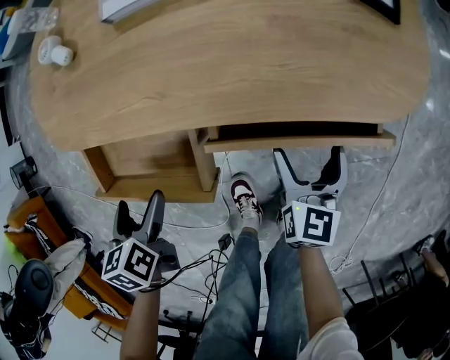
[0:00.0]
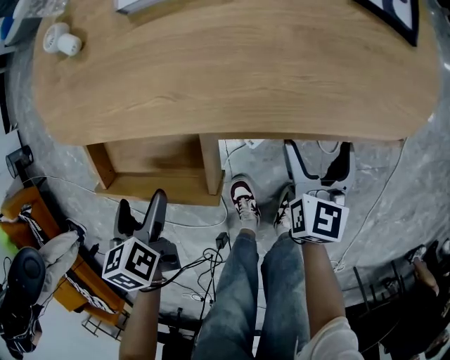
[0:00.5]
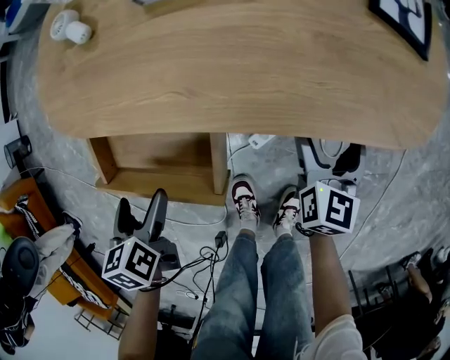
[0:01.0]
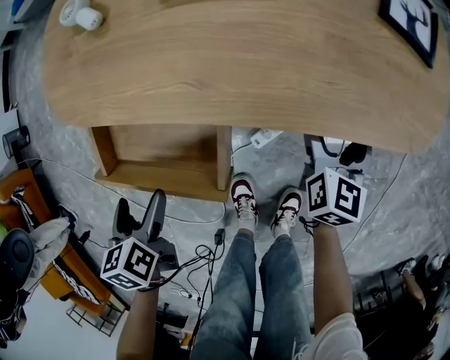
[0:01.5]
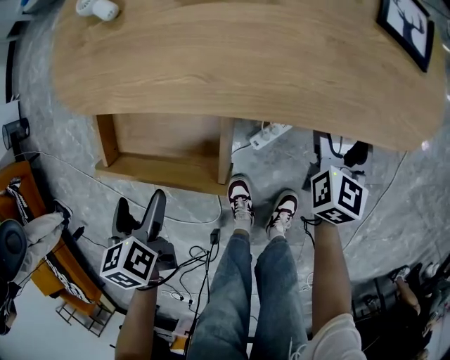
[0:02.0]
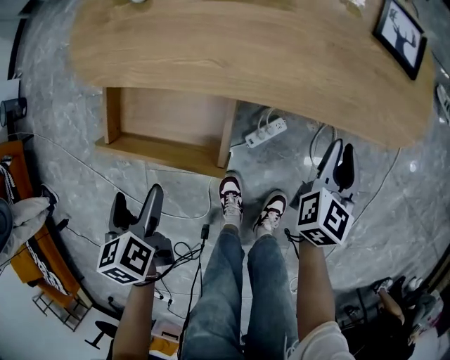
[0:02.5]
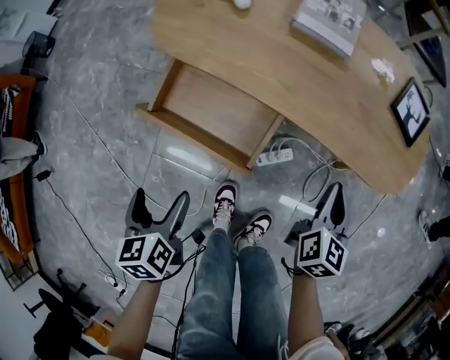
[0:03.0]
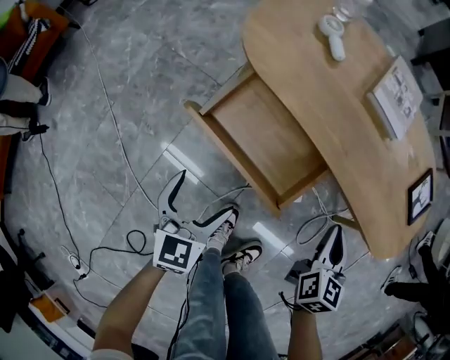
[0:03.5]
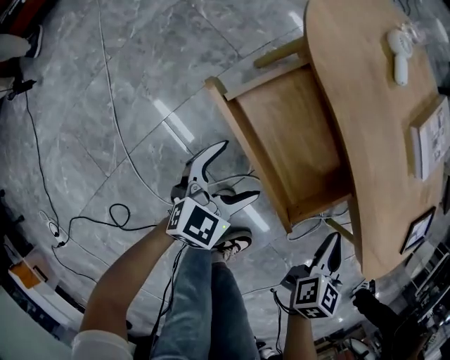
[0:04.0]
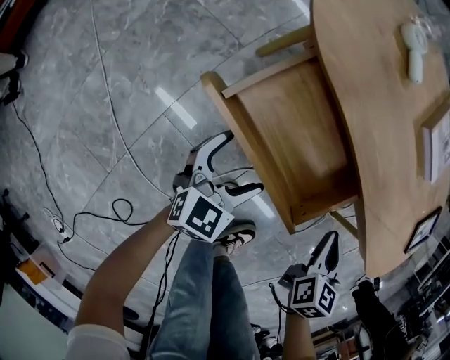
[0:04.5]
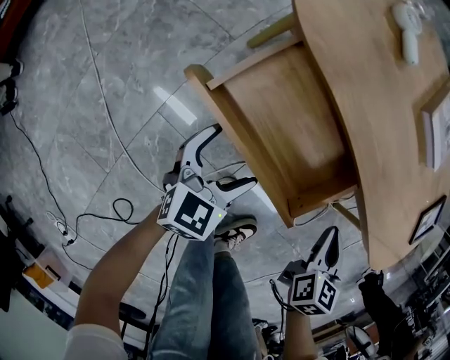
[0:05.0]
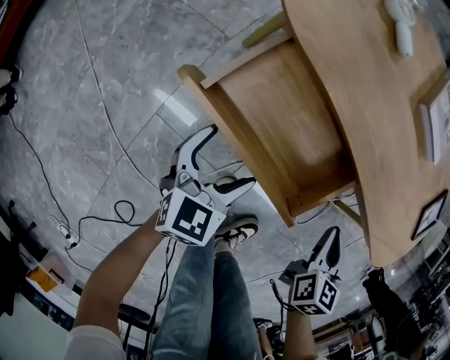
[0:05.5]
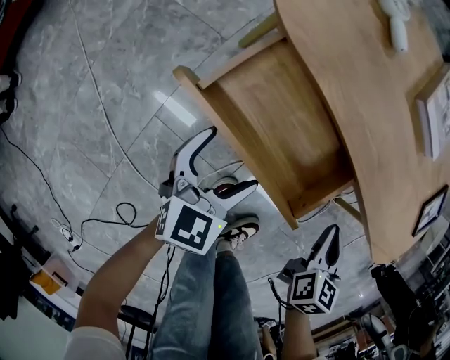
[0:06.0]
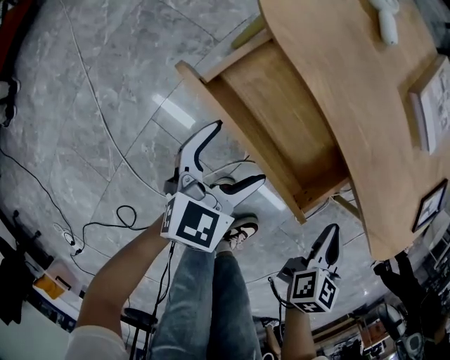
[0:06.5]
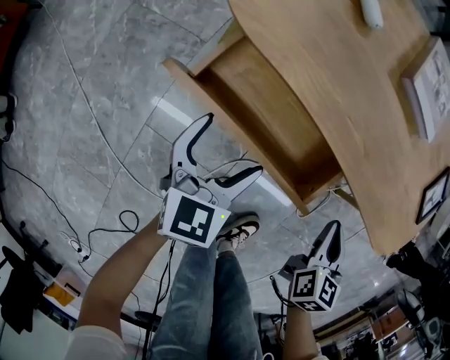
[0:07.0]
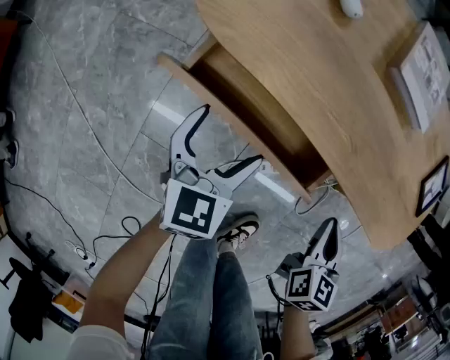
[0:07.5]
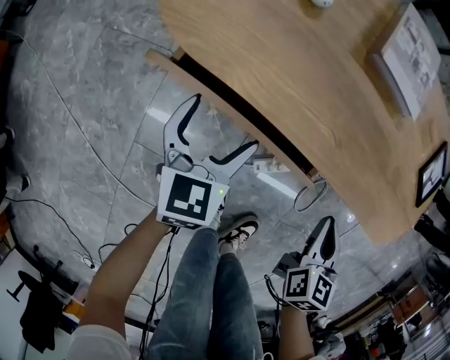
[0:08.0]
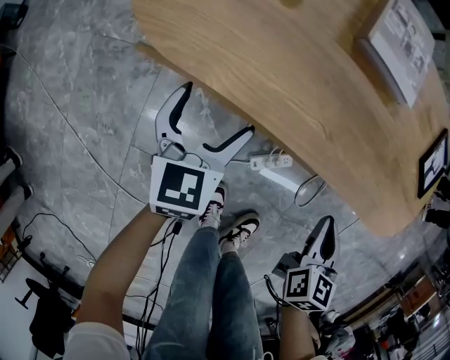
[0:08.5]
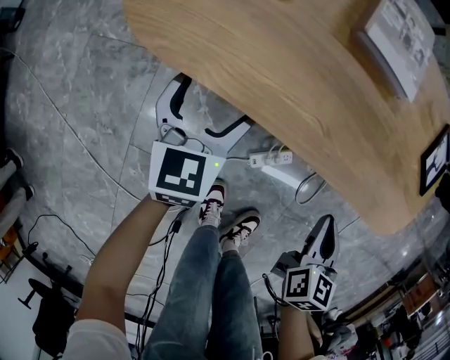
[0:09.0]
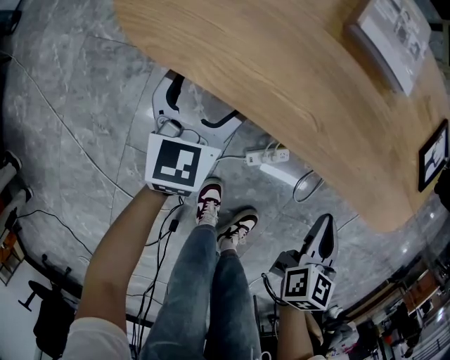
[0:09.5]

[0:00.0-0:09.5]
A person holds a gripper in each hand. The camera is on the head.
0:00.0 to 0:02.0: The right gripper travels forward by roughly 5 cm. Meanwhile the left gripper moves approximately 5 cm.
0:02.0 to 0:04.0: The right gripper is displaced to the left by approximately 20 cm, changes its angle by roughly 40 degrees, and closes, while the left gripper goes some 5 cm downward, and rotates approximately 30 degrees.
0:04.0 to 0:05.5: There are only small adjustments of the grippers.
0:05.5 to 0:07.5: The left gripper heads forward, covering about 10 cm.
0:07.5 to 0:09.5: The left gripper is displaced forward by about 10 cm.

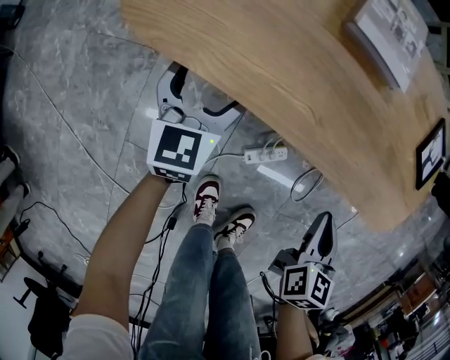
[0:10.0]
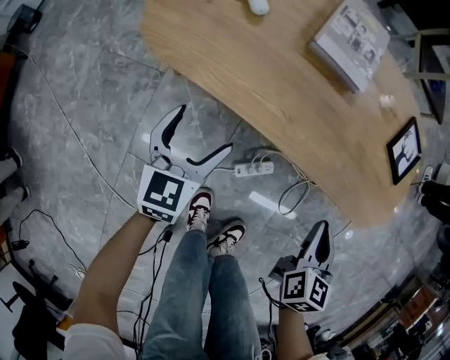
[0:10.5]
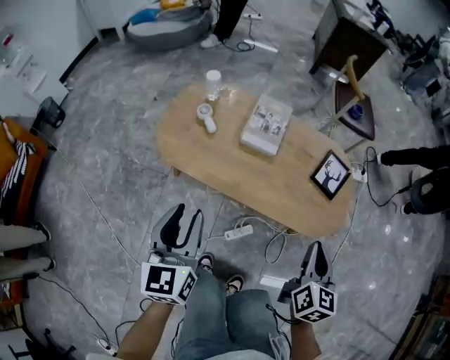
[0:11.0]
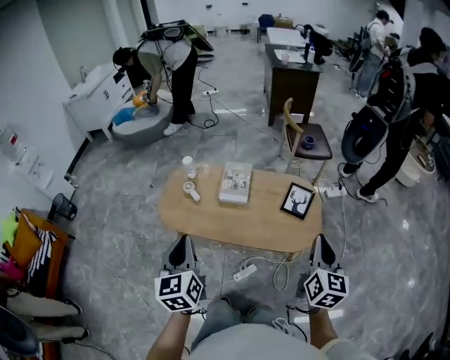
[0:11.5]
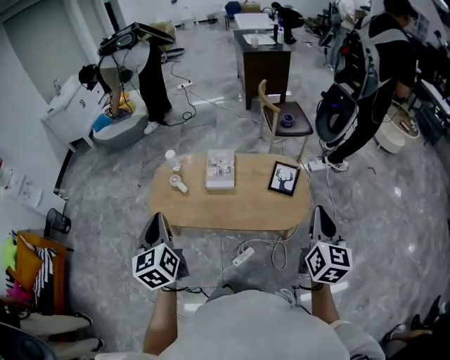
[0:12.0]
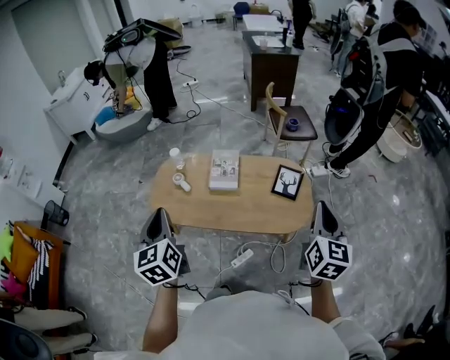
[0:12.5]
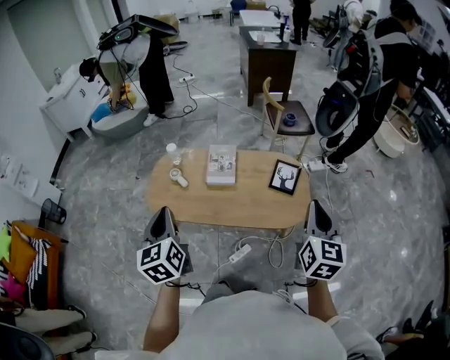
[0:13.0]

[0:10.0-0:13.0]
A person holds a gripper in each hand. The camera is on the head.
0:10.0 to 0:11.5: Both grippers move upward, roughly 50 cm. The left gripper closes up. Meanwhile the right gripper angles its fingers upward, by some 30 degrees.
0:11.5 to 0:13.0: The left gripper moves some 5 cm.

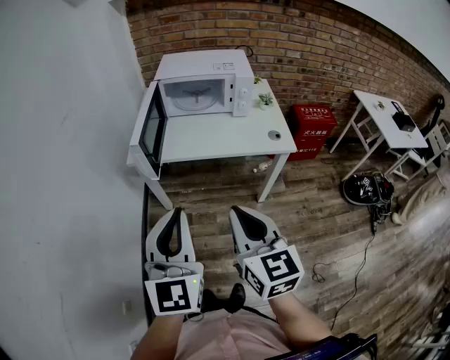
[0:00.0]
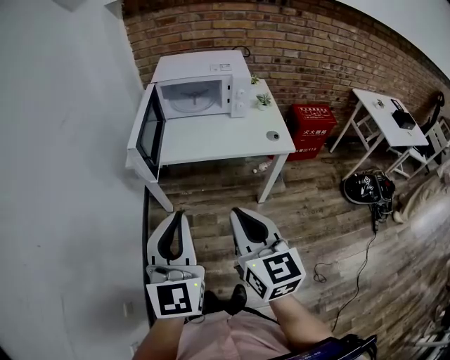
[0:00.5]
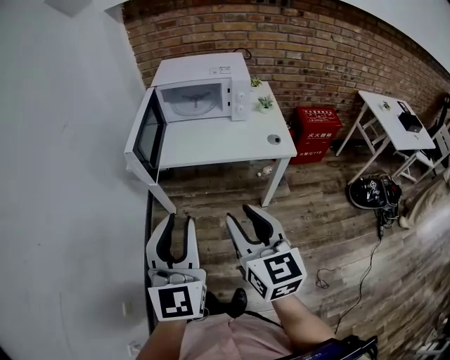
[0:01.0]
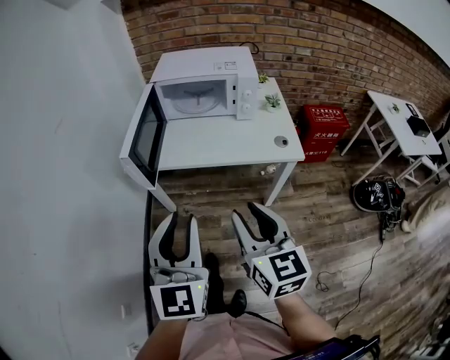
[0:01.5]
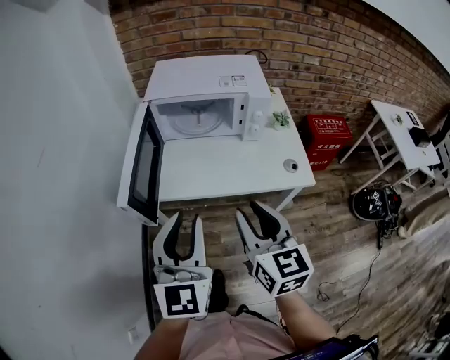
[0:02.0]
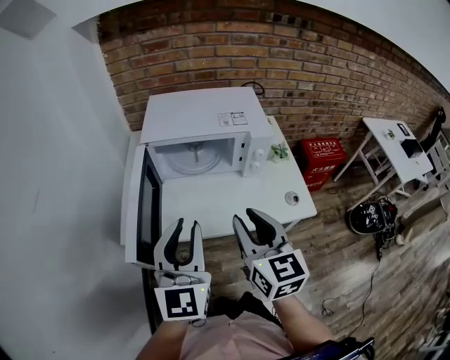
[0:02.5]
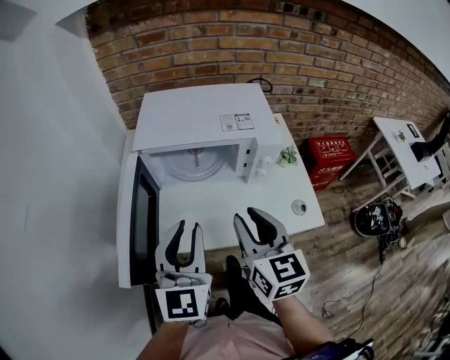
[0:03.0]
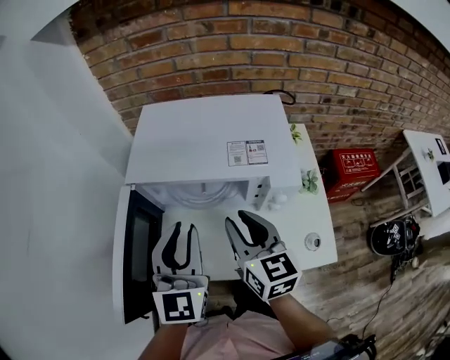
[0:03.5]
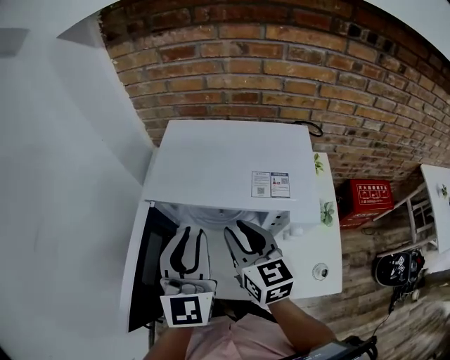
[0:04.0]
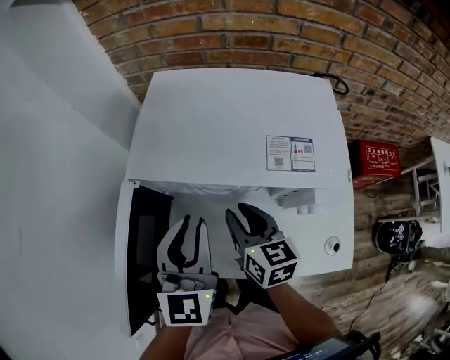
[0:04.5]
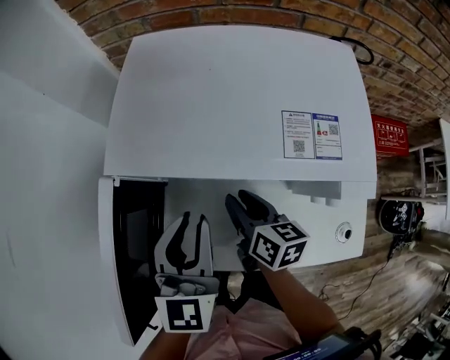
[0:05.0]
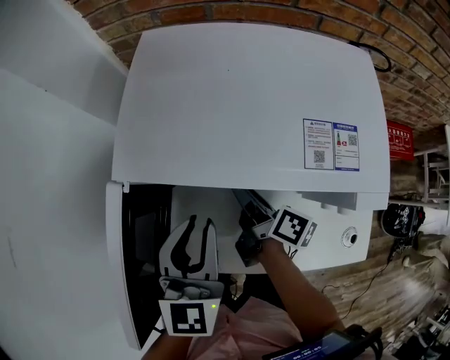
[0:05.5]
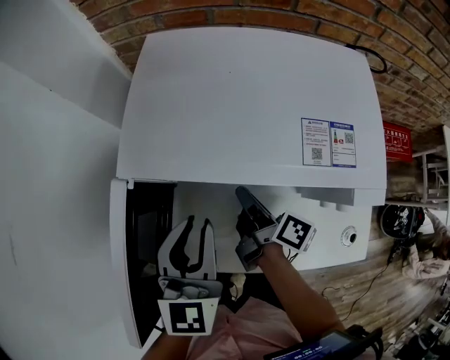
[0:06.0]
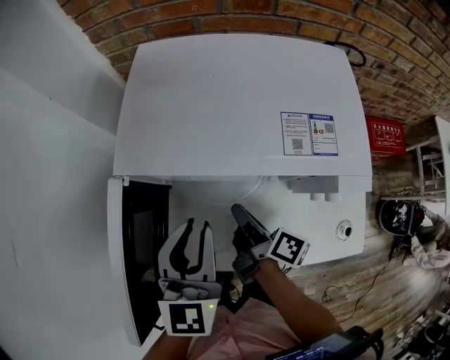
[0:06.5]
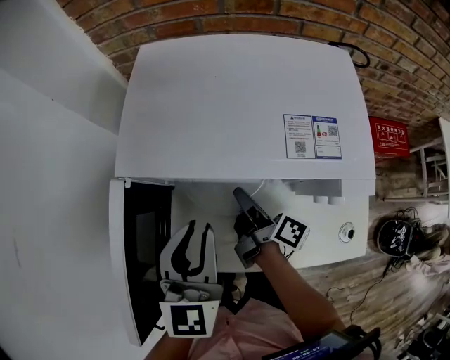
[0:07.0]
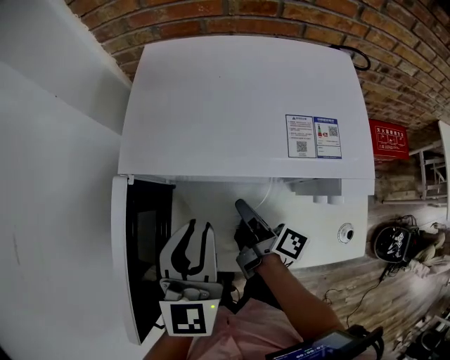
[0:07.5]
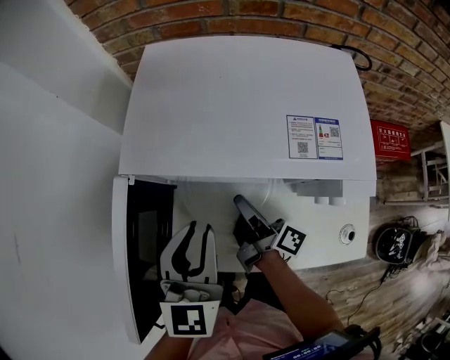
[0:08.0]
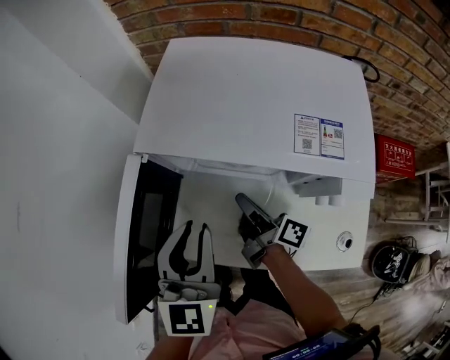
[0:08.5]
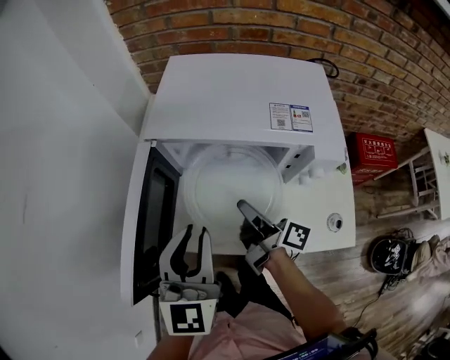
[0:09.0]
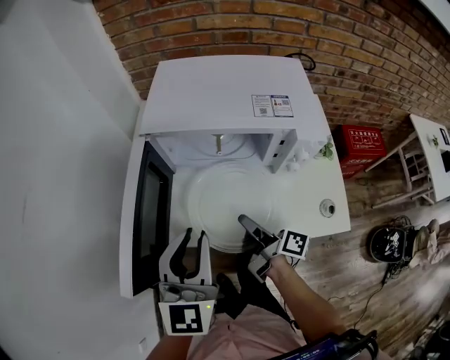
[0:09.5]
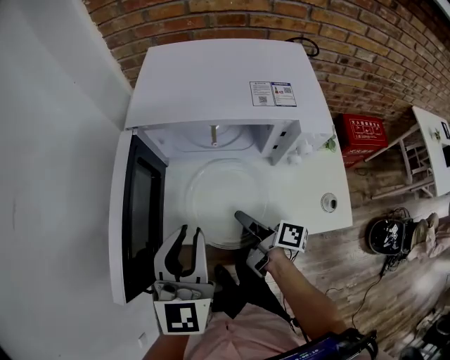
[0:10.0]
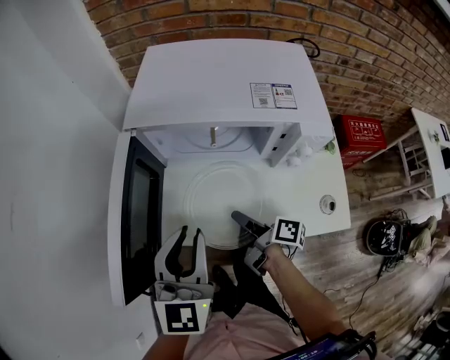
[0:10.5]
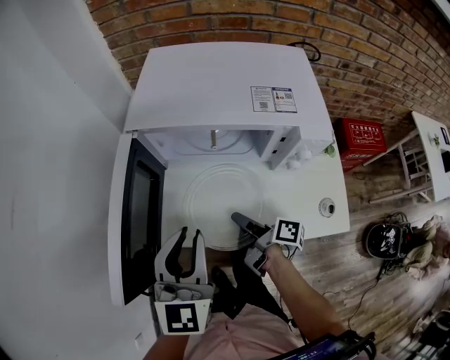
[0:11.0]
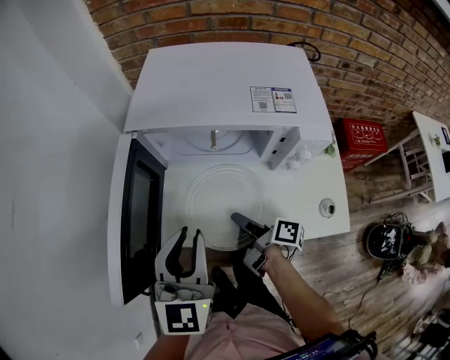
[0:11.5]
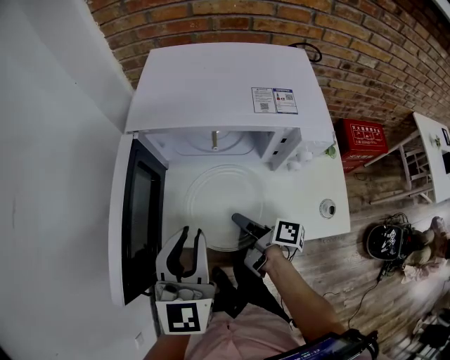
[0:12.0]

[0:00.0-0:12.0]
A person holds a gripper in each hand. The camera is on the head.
0:00.0 to 0:02.0: Both grippers travel together forward, about 20 cm. The right gripper opens up, while the left gripper opens.
0:02.0 to 0:04.0: The grippers both shift forward by some 35 cm.
0:04.0 to 0:06.0: The right gripper shifts roughly 20 cm downward, rolls clockwise, seen from behind, by roughly 70 degrees, and closes its fingers, while the left gripper is displaced downward by some 10 cm.
0:06.0 to 0:08.0: The grippers move only a little.
0:08.0 to 0:10.0: The two grippers go roughly 15 cm backward.
0:10.0 to 0:12.0: There are only small adjustments of the grippers.

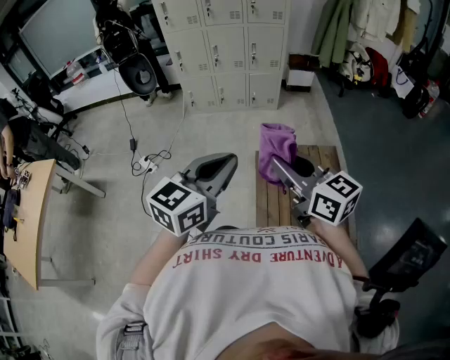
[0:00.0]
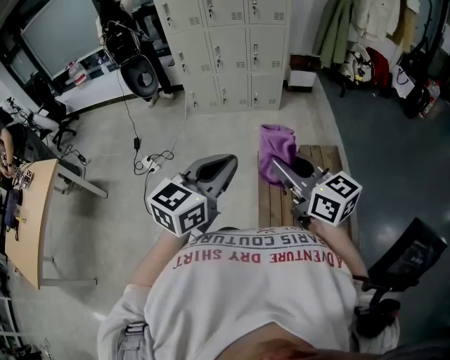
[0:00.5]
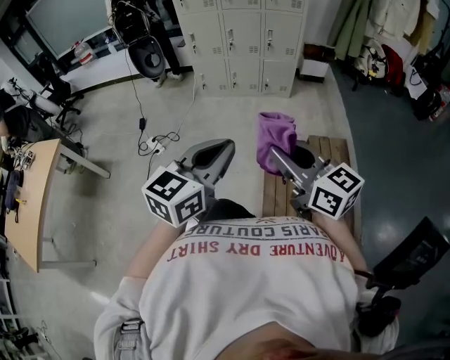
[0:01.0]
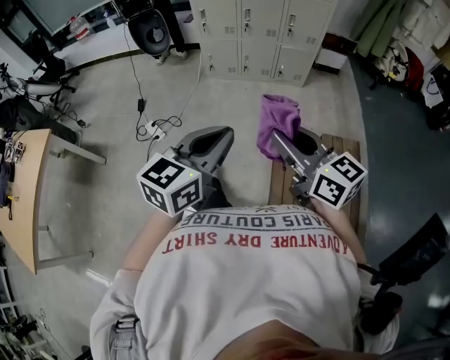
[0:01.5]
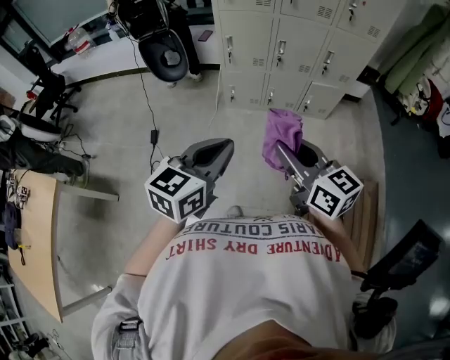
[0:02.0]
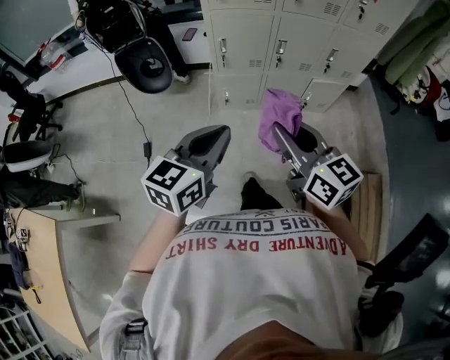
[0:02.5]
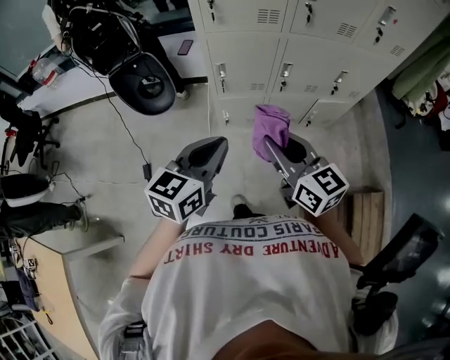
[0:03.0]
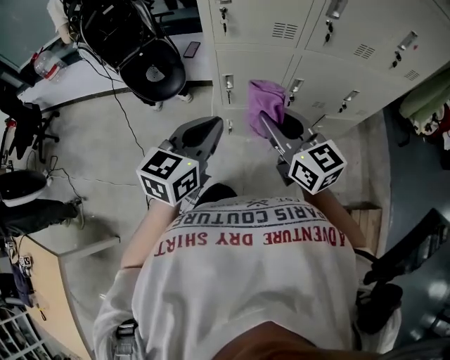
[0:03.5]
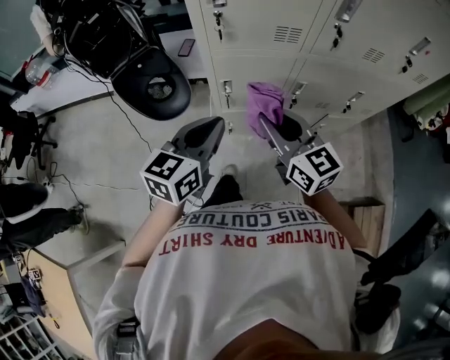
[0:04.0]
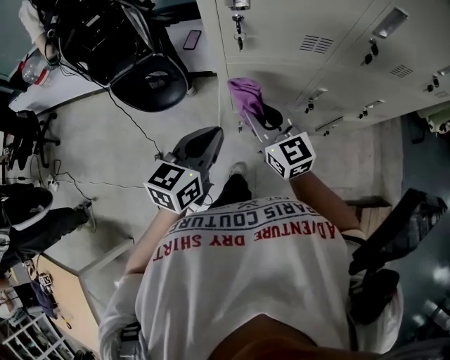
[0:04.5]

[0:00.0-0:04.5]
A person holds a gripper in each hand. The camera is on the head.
0:00.0 to 0:02.0: The pair of grippers is taken forward and to the left, roughly 60 cm.
0:02.0 to 0:04.5: The two grippers travel together, forward, some 60 cm.
